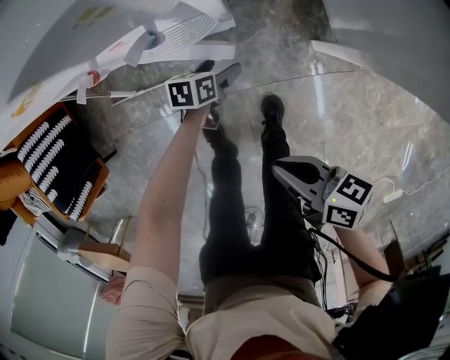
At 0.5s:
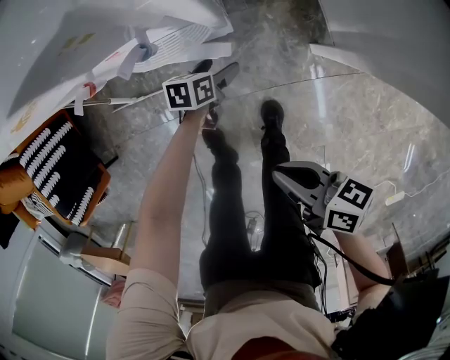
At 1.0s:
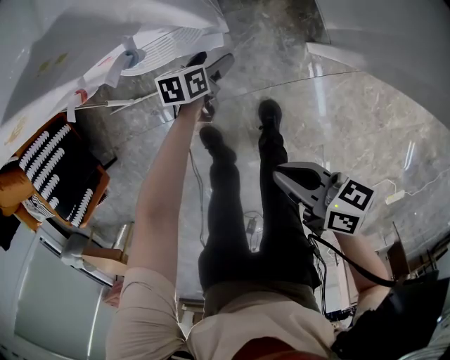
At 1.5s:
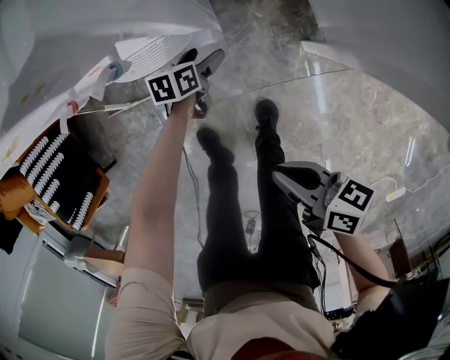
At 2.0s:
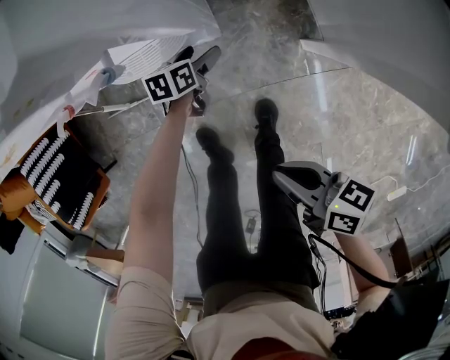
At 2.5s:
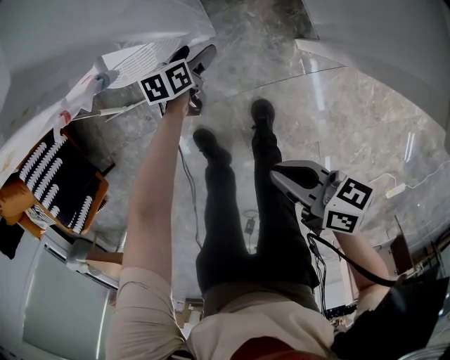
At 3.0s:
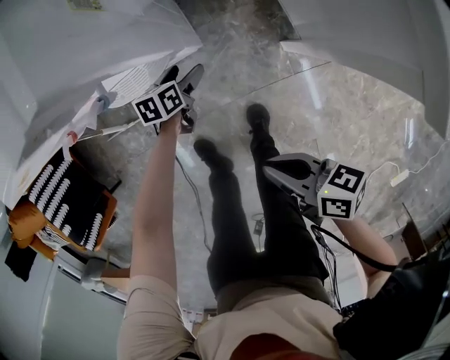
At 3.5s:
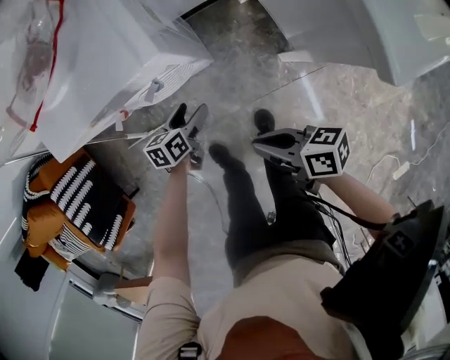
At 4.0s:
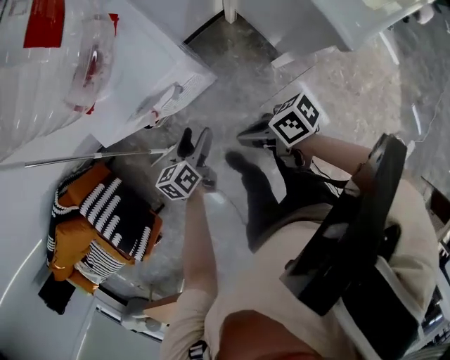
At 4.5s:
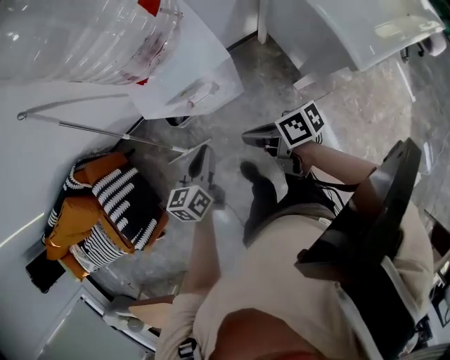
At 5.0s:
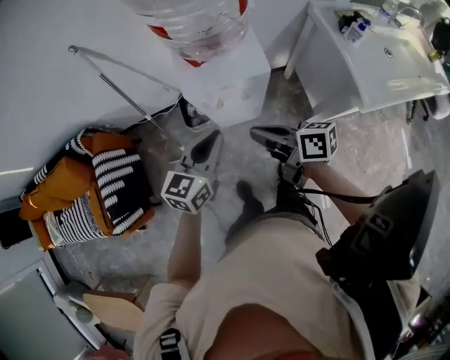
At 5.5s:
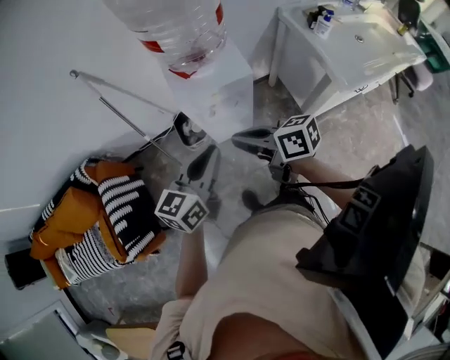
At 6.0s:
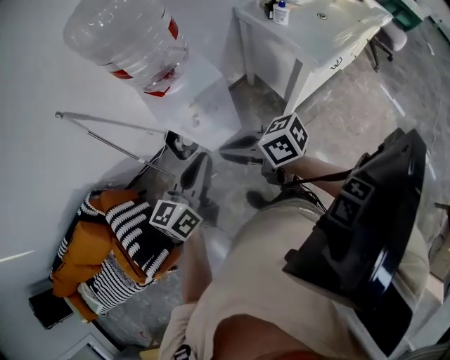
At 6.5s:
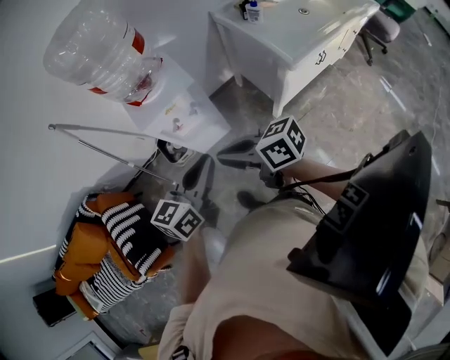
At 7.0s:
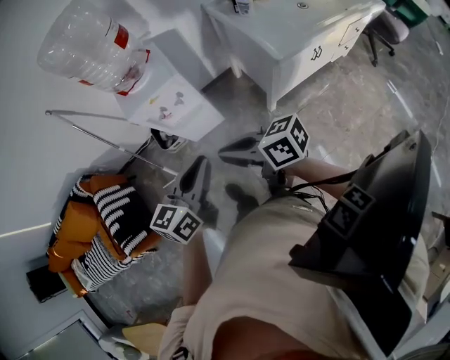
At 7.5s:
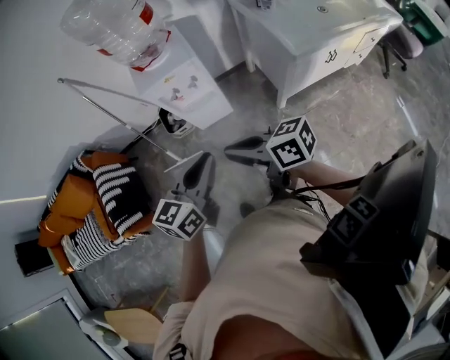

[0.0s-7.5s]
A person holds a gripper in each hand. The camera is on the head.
0.0s to 2.0s: The right gripper ends up roughly 5 cm from where it was. Meanwhile the left gripper changes place by approximately 10 cm.
2.0s to 4.0s: The right gripper goes approximately 20 cm upward, to the left and forward. The left gripper shifts approximately 30 cm upward.
4.0s to 5.5s: The right gripper shifts approximately 25 cm upward and to the left, and changes its angle by roughly 30 degrees; the left gripper moves upward, approximately 35 cm, rotates roughly 40 degrees, and closes its fingers.
5.5s to 7.5s: Both grippers travel together backward and to the right, about 25 cm.

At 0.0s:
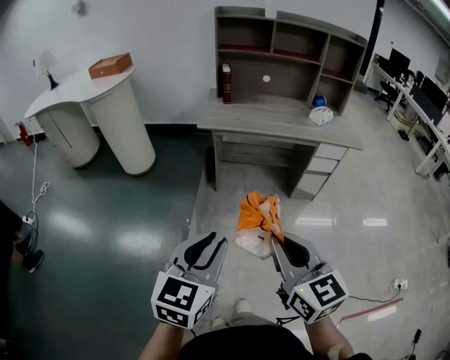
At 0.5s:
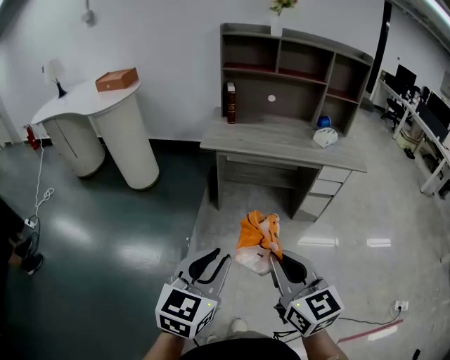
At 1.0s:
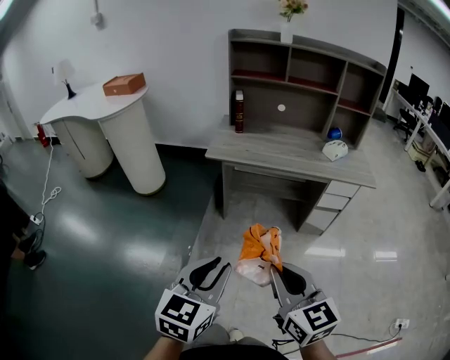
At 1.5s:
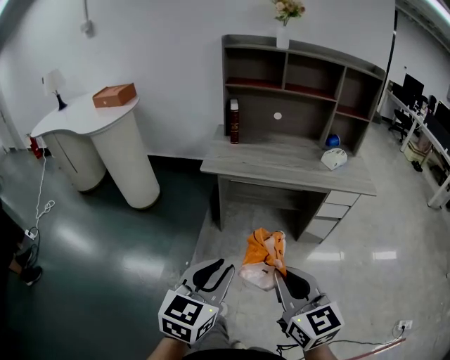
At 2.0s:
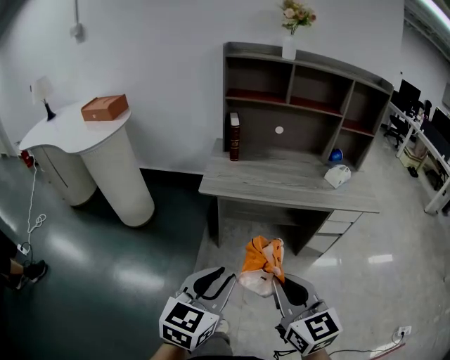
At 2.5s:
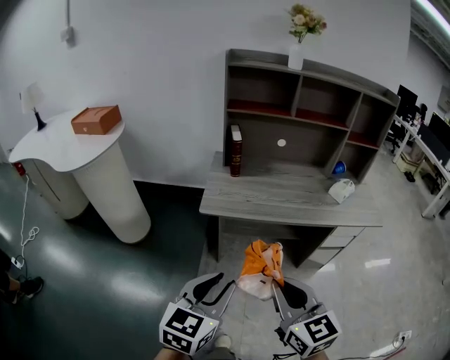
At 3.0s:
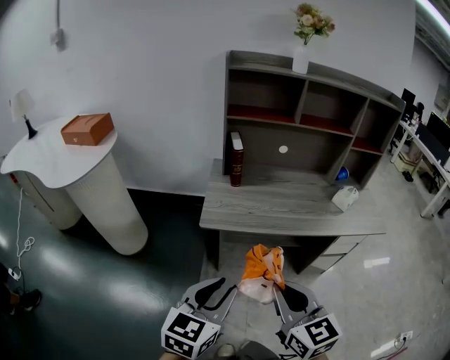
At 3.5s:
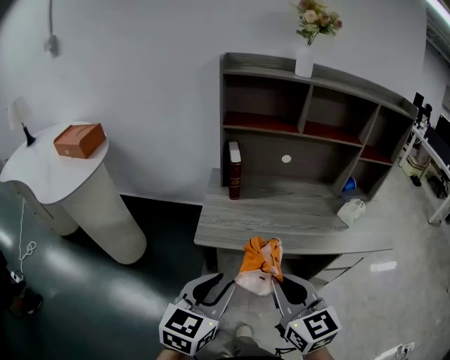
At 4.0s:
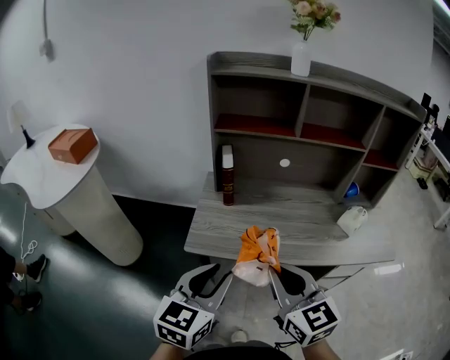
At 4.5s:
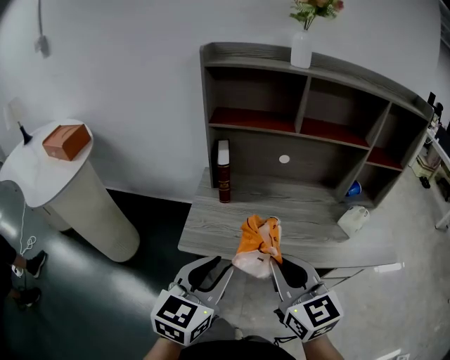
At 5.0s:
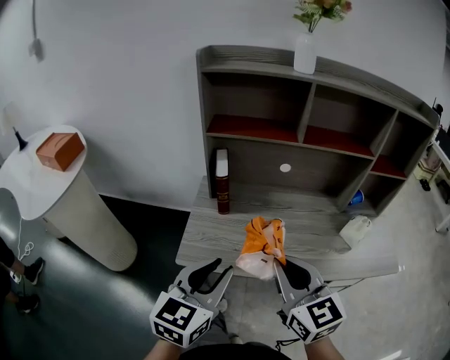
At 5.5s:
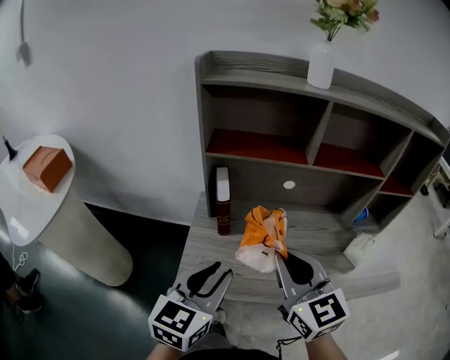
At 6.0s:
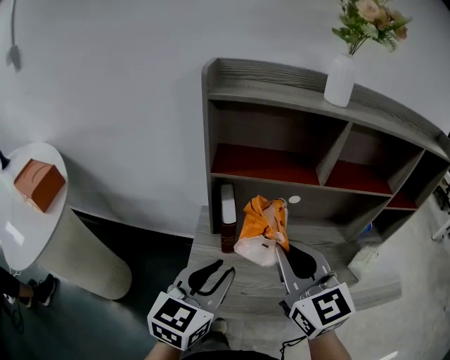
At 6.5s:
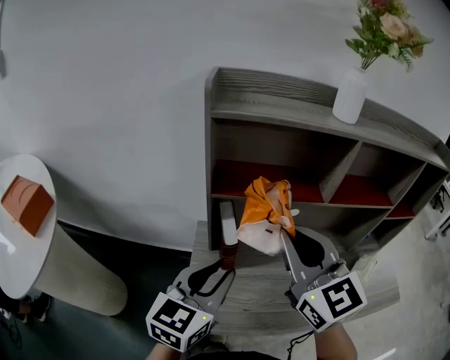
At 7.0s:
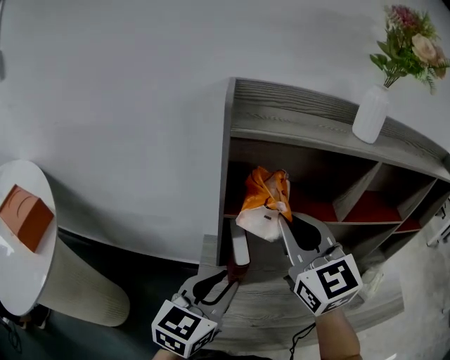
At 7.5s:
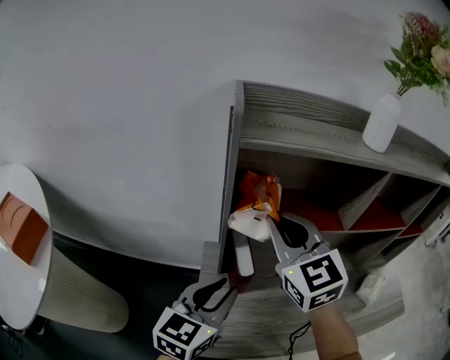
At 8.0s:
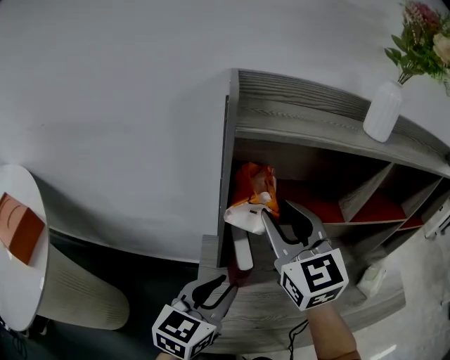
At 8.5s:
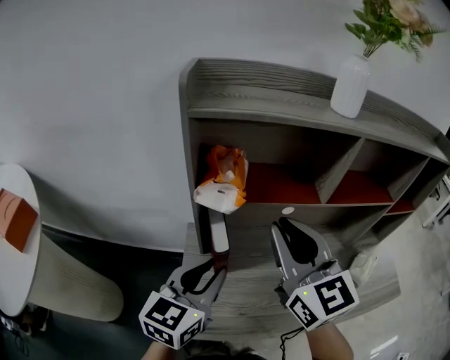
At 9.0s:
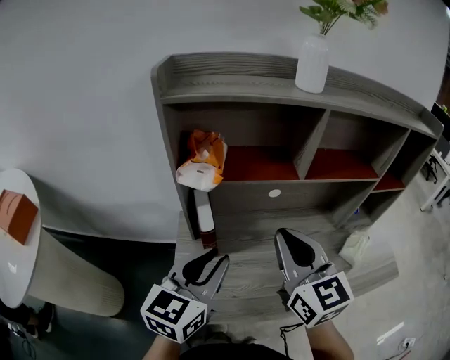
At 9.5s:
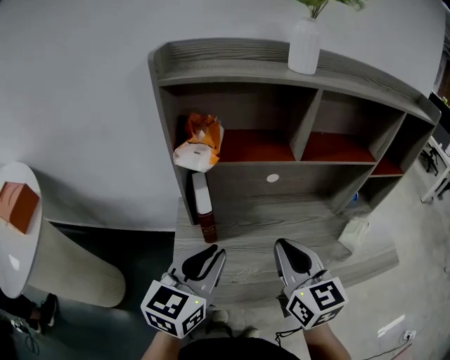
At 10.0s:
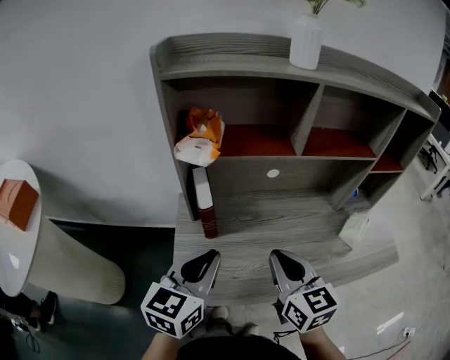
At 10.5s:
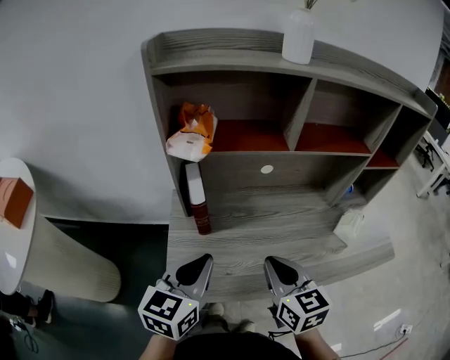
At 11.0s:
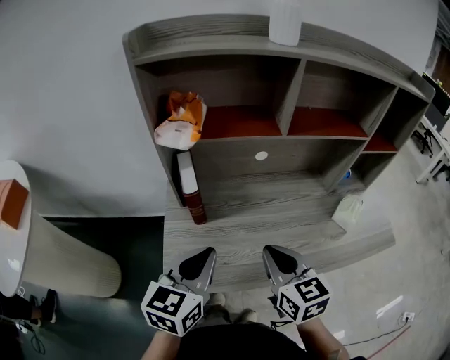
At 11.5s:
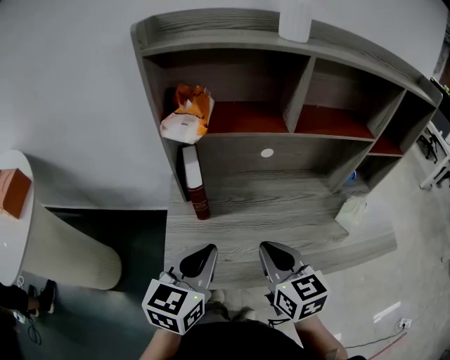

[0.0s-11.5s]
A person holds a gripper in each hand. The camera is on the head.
0.0s to 2.0s: Both grippers travel together forward, approximately 20 cm.
2.0s to 4.0s: Both grippers travel together forward, roughly 30 cm.
4.0s to 6.0s: Both grippers travel together forward, roughly 25 cm.
6.0s to 7.5s: The right gripper travels forward and to the left by roughly 20 cm; the left gripper shifts about 15 cm forward and to the left.
7.5s to 9.5s: The left gripper heads to the right and backward, covering roughly 10 cm. Meanwhile the right gripper shifts some 25 cm to the right, backward and downward, turns by some 20 degrees, and opens, then closes again.
9.5s to 11.5s: The right gripper heads downward, covering about 10 cm, while the left gripper moves downward, approximately 5 cm.

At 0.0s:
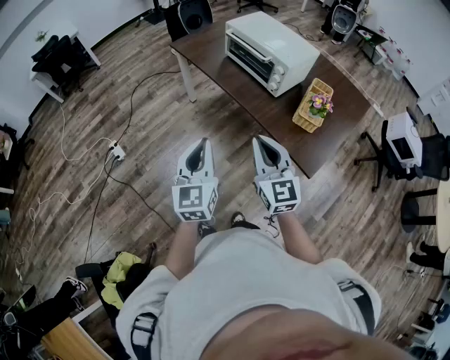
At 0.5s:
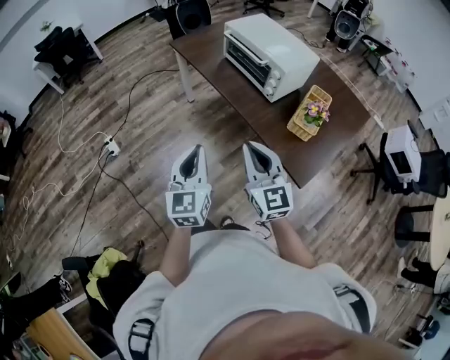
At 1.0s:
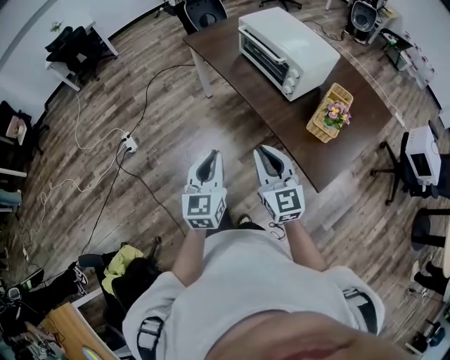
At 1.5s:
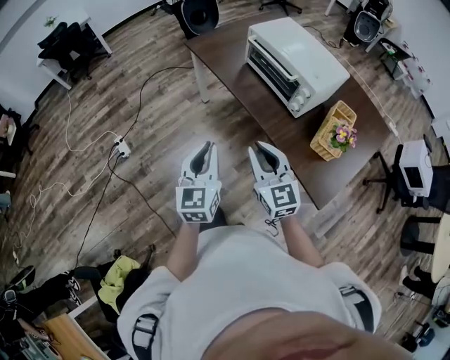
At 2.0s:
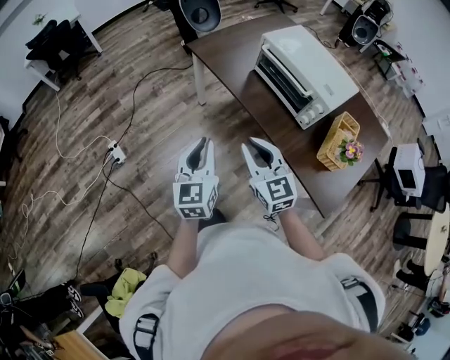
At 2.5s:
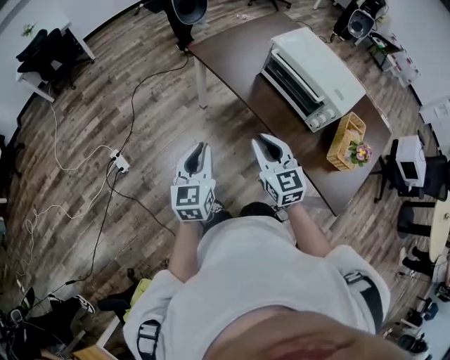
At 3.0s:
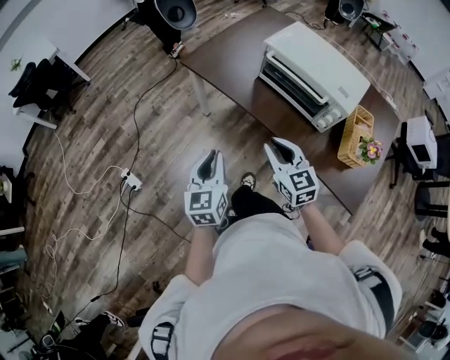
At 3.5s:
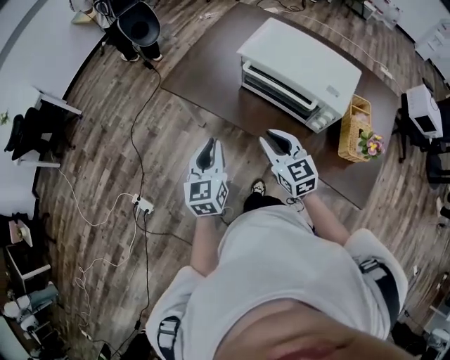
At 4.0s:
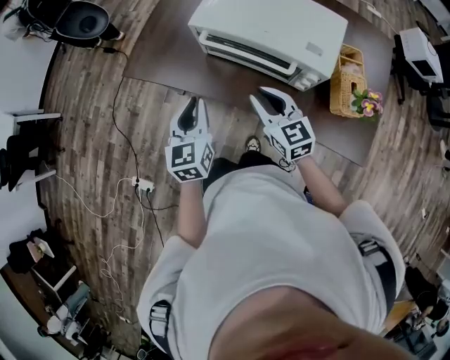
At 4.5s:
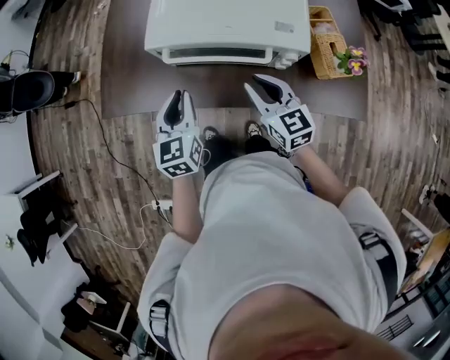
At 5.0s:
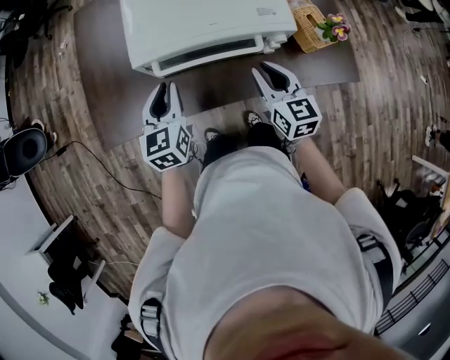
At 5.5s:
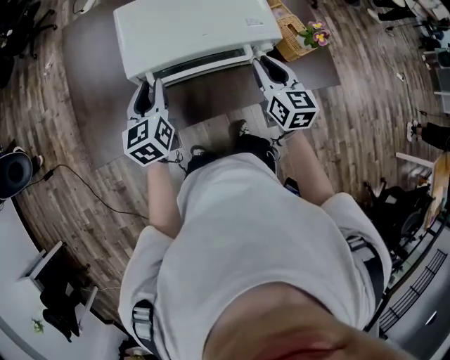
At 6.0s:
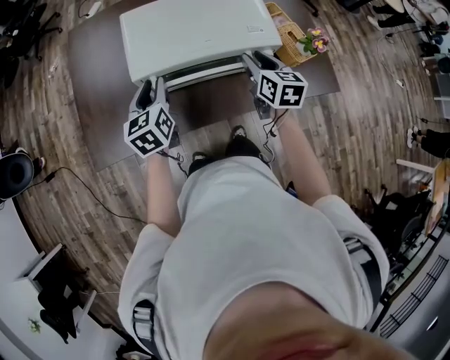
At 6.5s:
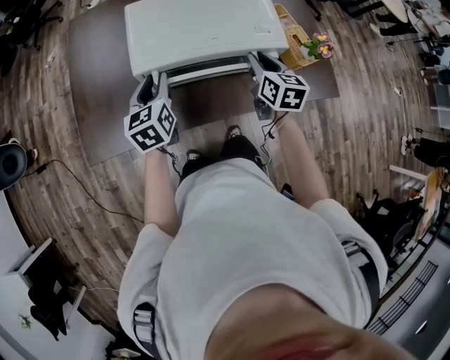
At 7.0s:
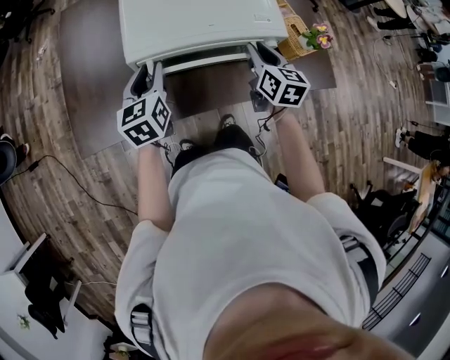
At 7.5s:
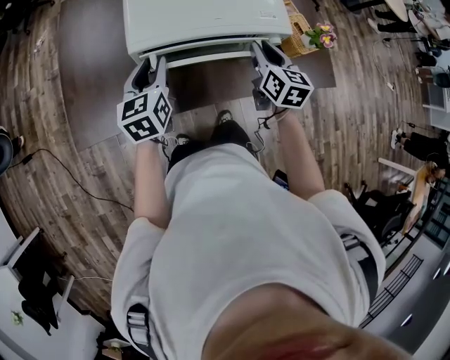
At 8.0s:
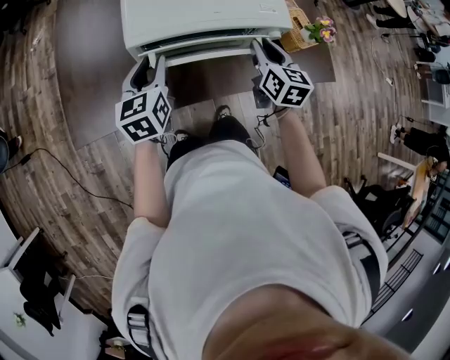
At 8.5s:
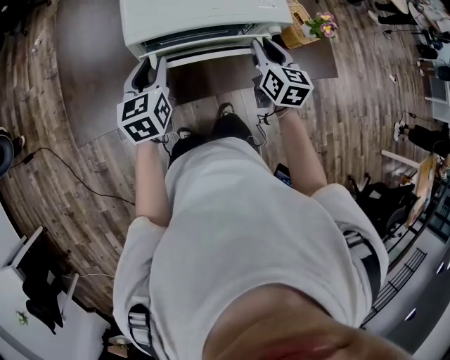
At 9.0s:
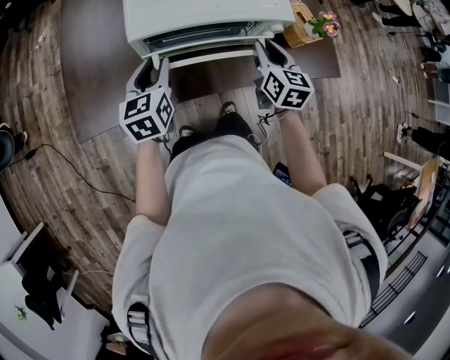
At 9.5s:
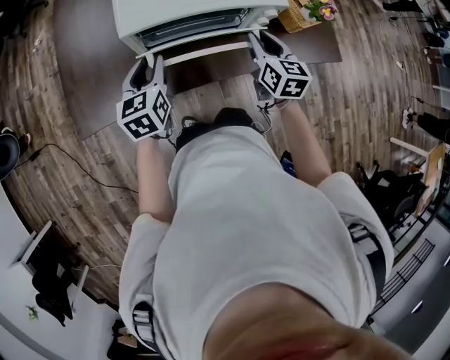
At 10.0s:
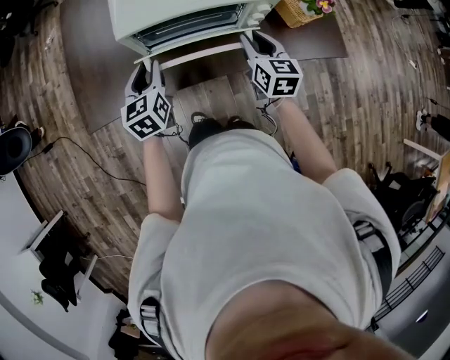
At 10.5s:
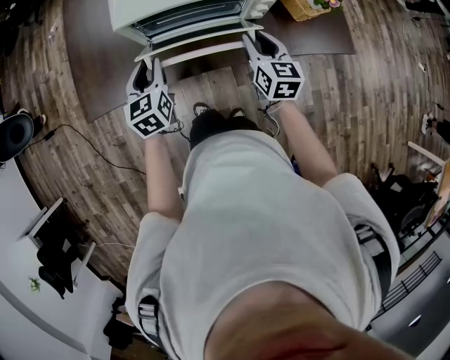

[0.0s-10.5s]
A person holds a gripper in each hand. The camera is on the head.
0.0s to 2.0s: The left gripper moves forward, some 25 cm, while the right gripper heads forward and to the left, covering some 25 cm.
2.0s to 4.0s: The left gripper heads forward, covering about 30 cm, and turns by about 30 degrees, while the right gripper travels forward and to the right by some 30 cm, and turns by about 30 degrees.
4.0s to 6.5s: The left gripper changes place by approximately 20 cm, and turns by roughly 30 degrees. The right gripper moves roughly 15 cm, and changes its angle by about 60 degrees.
6.5s to 8.5s: The grippers stay close to where they were, moving slightly.
8.5s to 10.5s: The two grippers go about 5 cm backward.
